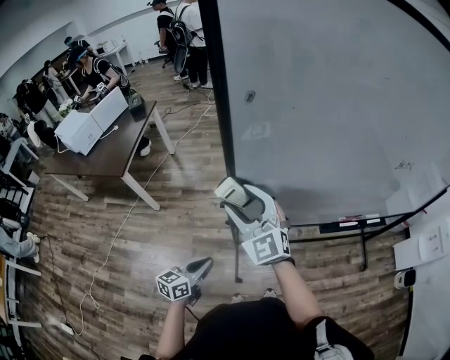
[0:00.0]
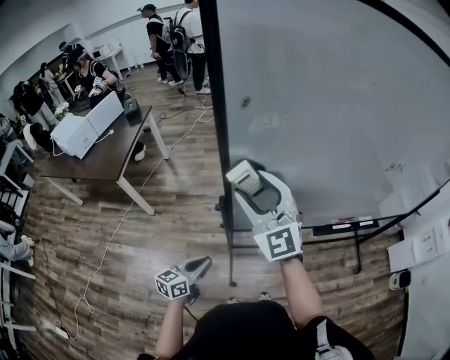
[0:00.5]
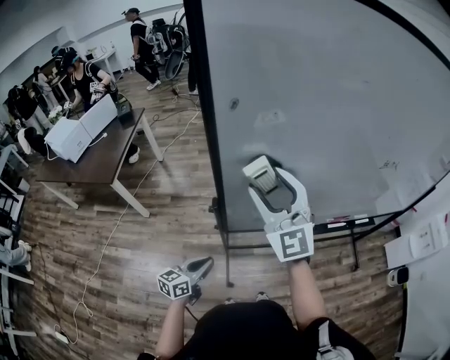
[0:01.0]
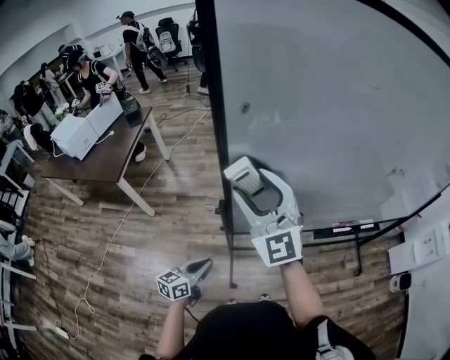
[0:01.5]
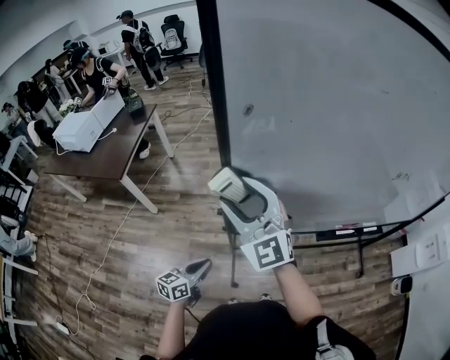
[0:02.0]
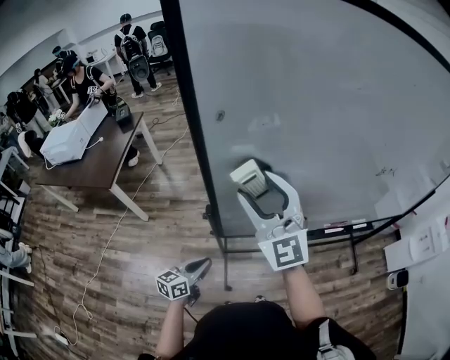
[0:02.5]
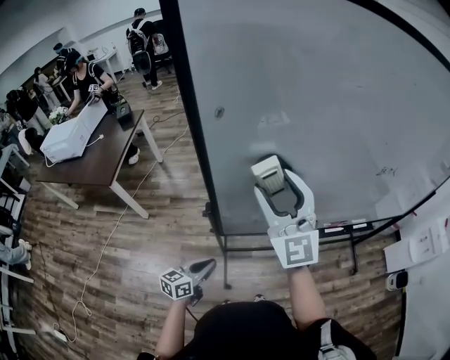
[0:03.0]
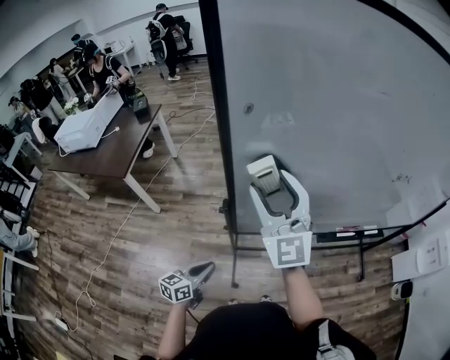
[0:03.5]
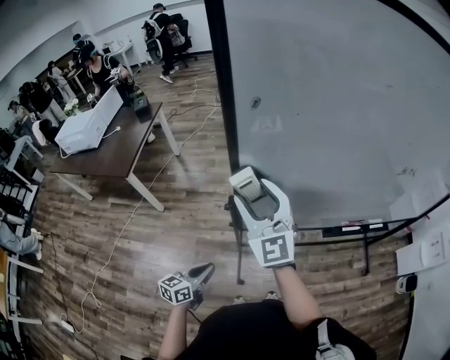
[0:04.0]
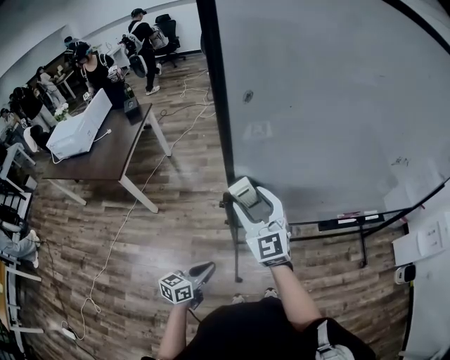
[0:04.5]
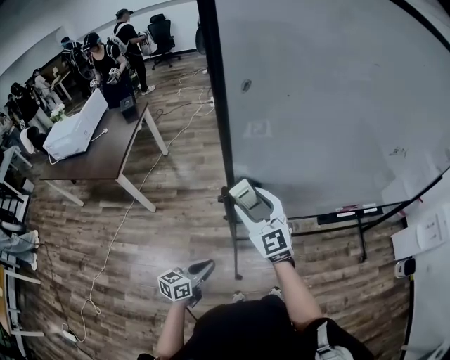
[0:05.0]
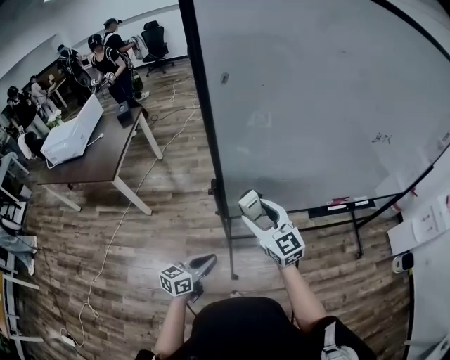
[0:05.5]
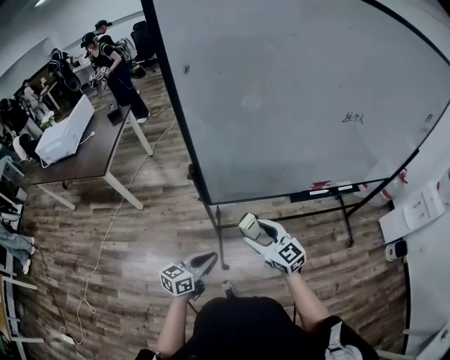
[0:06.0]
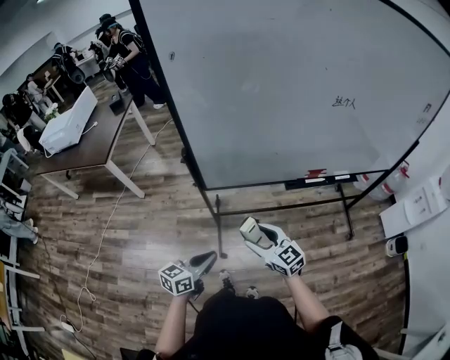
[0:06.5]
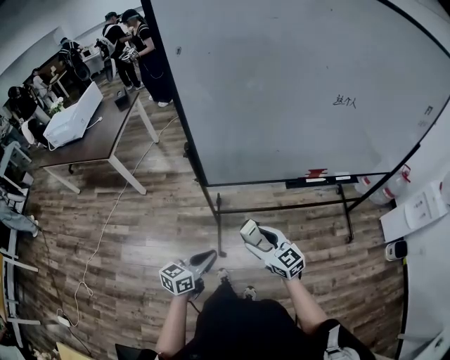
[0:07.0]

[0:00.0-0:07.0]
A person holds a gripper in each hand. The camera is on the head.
0:00.0 to 0:02.0: The right gripper moves upward, about 10 cm.
0:02.0 to 0:03.5: The right gripper moves to the right, about 5 cm.
0:03.5 to 0:05.0: The right gripper goes approximately 15 cm downward, and changes its angle by roughly 20 degrees.
0:05.0 to 0:07.0: The right gripper moves backward, to the right and downward, some 35 cm, and turns by about 30 degrees; the left gripper heads backward and to the right, covering about 25 cm.

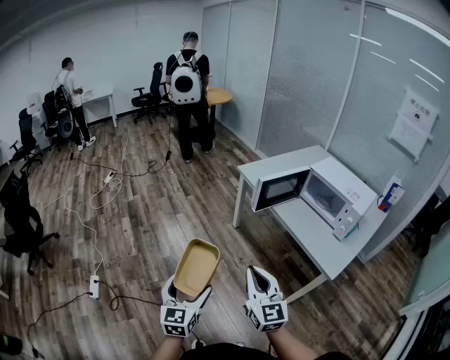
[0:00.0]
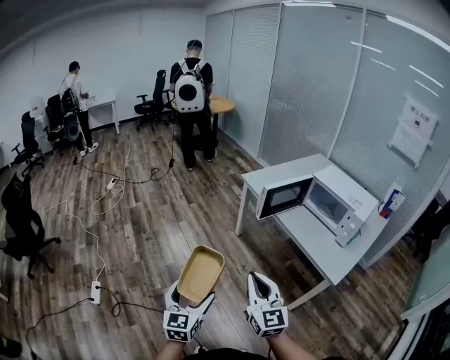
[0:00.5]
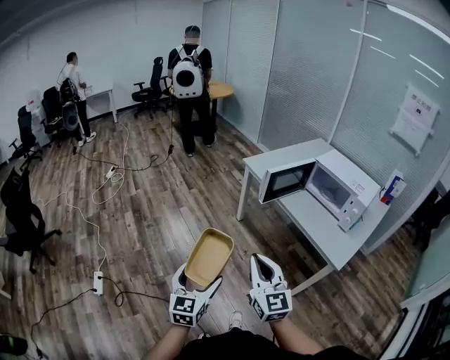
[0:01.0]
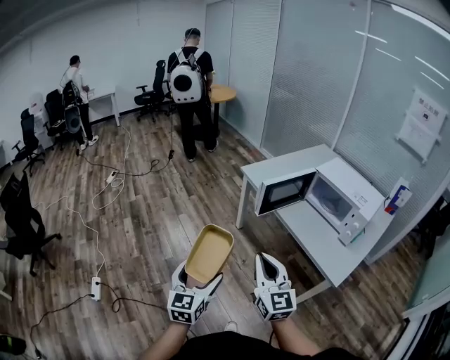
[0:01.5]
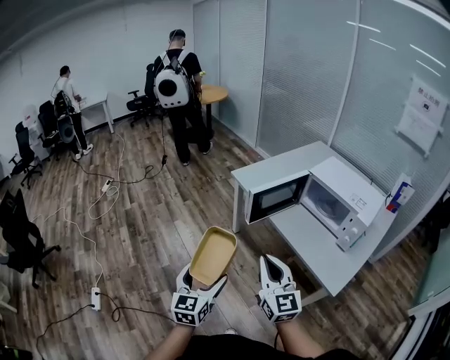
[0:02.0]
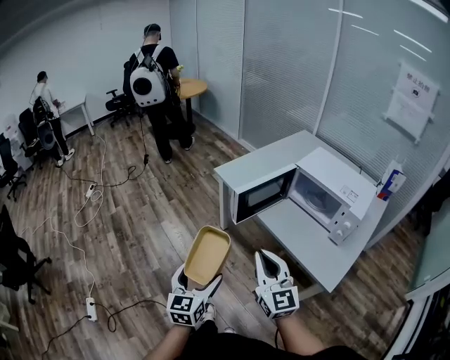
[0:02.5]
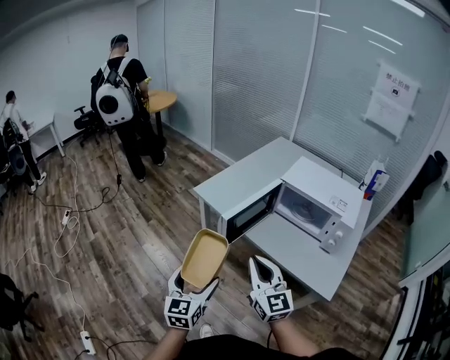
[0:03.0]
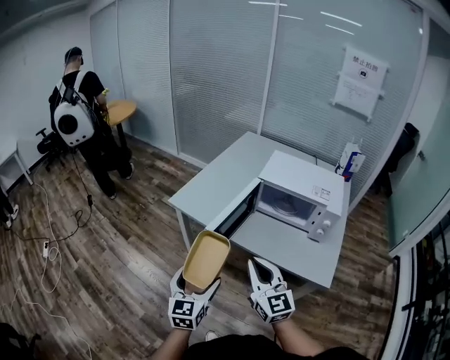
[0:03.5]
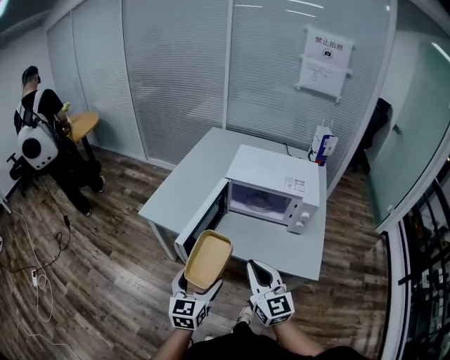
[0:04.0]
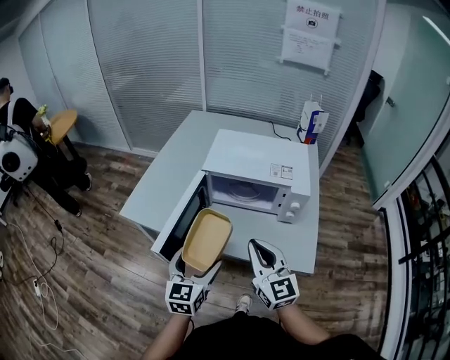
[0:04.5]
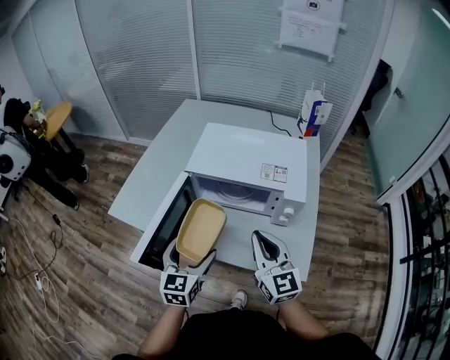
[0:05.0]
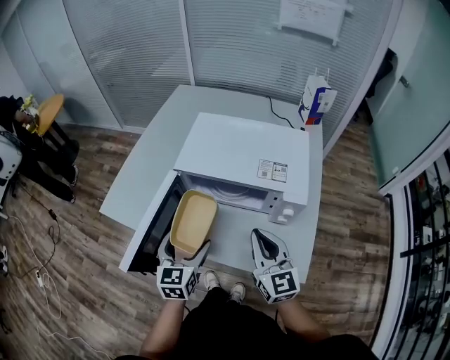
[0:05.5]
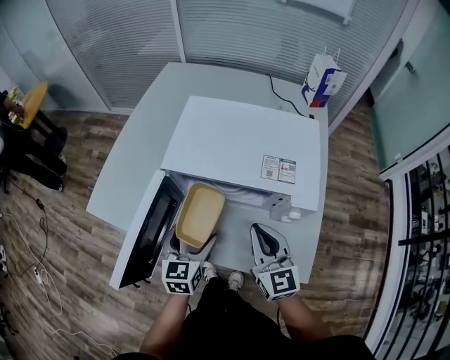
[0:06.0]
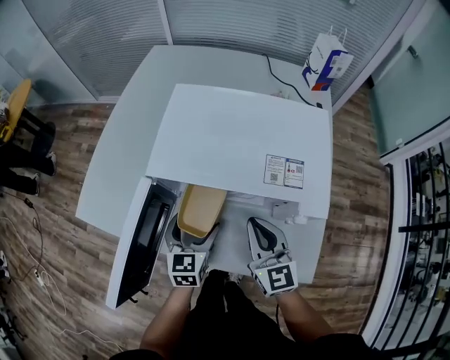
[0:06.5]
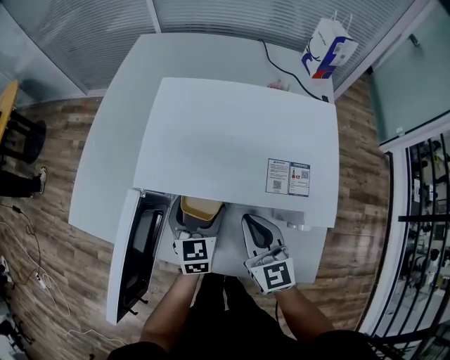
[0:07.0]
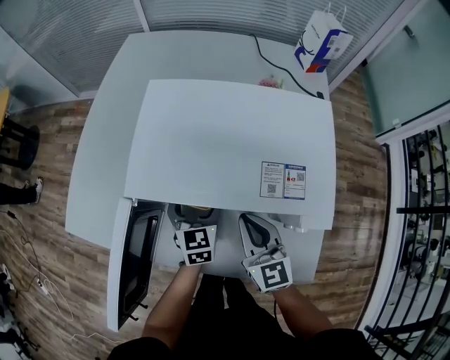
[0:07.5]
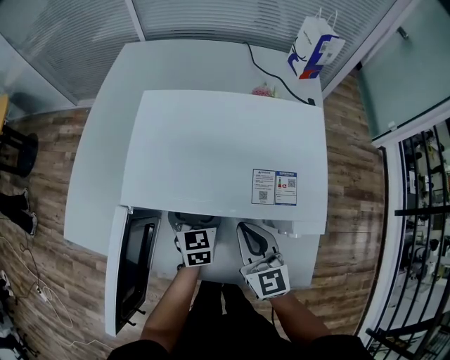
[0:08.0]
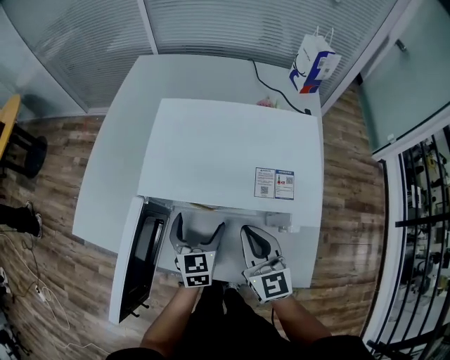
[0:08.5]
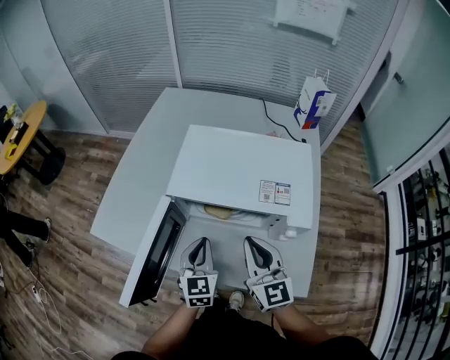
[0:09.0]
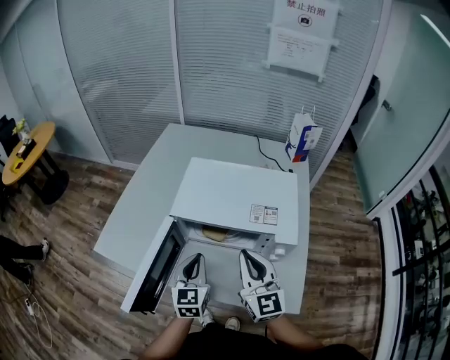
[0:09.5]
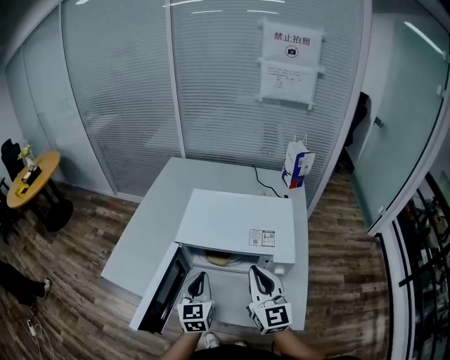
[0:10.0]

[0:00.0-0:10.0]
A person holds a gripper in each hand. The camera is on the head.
0:00.0 to 0:02.0: The grippers both shift forward and to the right by approximately 15 cm.
0:02.0 to 0:04.0: The right gripper shifts by approximately 20 cm, and changes its angle by approximately 30 degrees, while the left gripper ends up some 30 cm from where it was, and changes its angle by about 40 degrees.
0:04.0 to 0:06.0: Both grippers move forward and to the right, approximately 30 cm.
0:06.0 to 0:08.0: The left gripper is displaced forward, downward and to the right by some 20 cm; the right gripper heads downward and forward, covering roughly 10 cm.
0:08.0 to 0:10.0: The left gripper is displaced upward and backward by some 25 cm, and closes. The right gripper moves upward, approximately 20 cm.

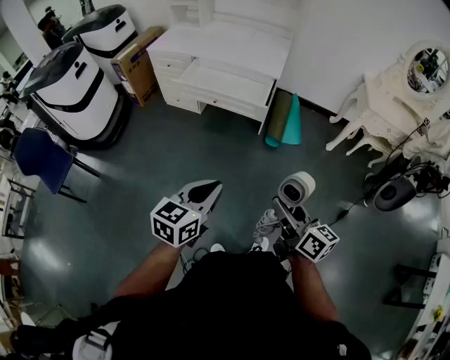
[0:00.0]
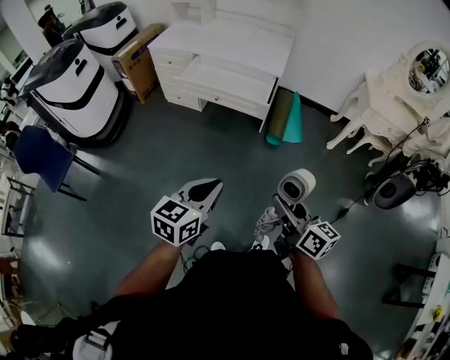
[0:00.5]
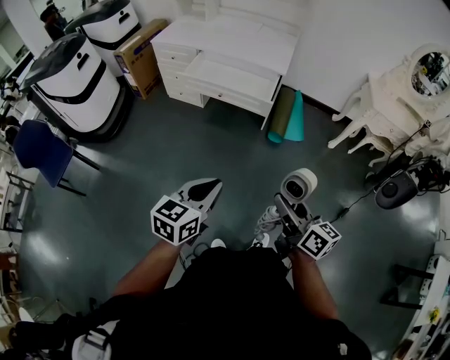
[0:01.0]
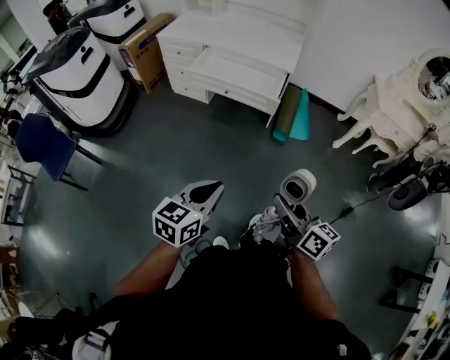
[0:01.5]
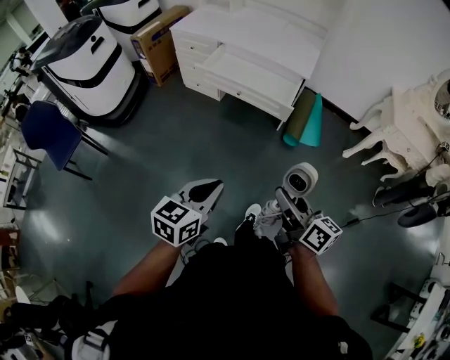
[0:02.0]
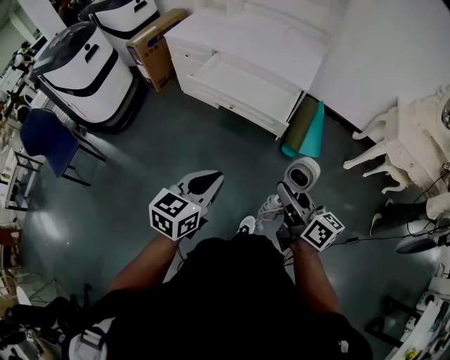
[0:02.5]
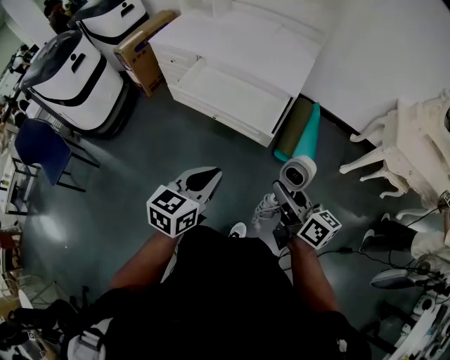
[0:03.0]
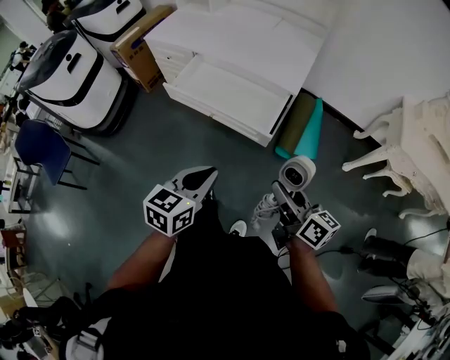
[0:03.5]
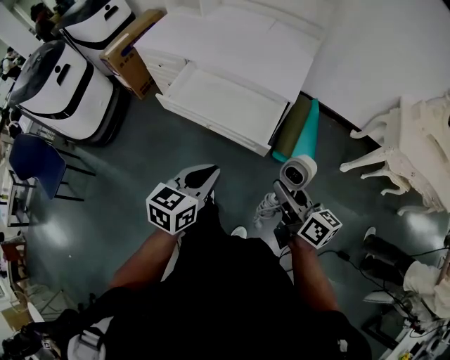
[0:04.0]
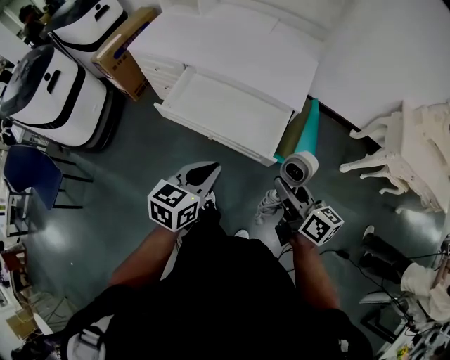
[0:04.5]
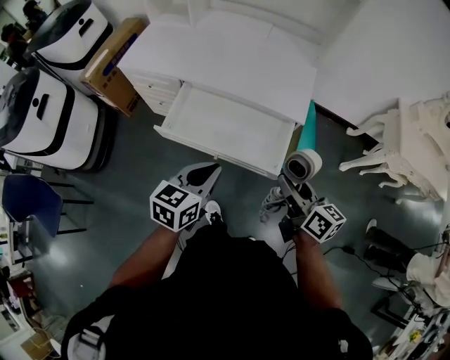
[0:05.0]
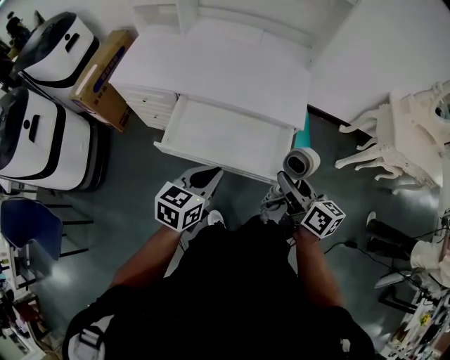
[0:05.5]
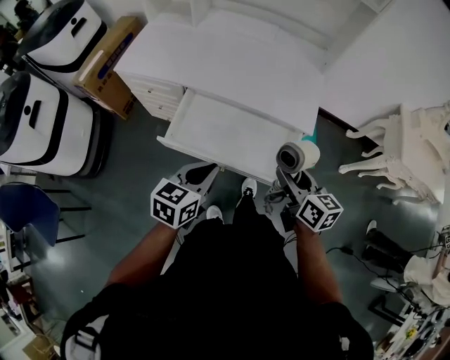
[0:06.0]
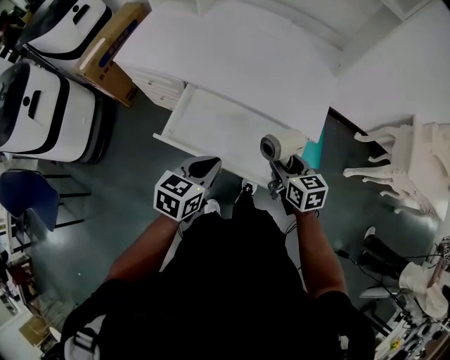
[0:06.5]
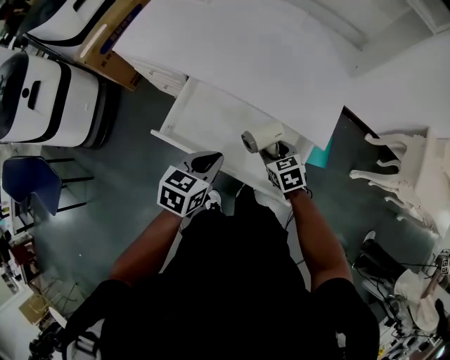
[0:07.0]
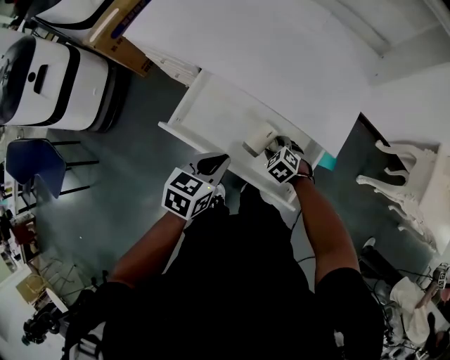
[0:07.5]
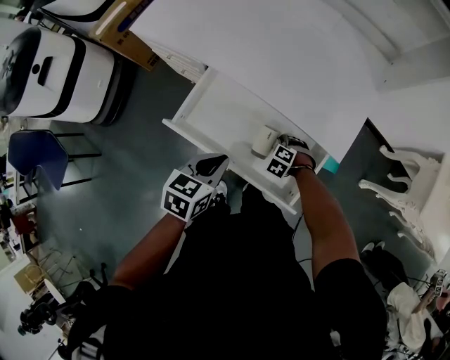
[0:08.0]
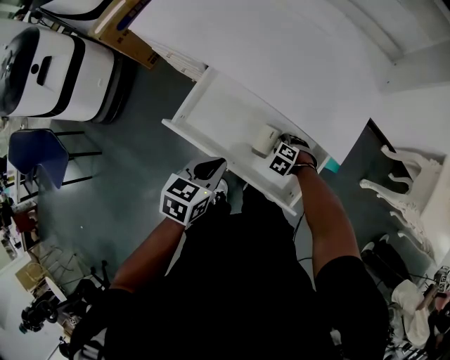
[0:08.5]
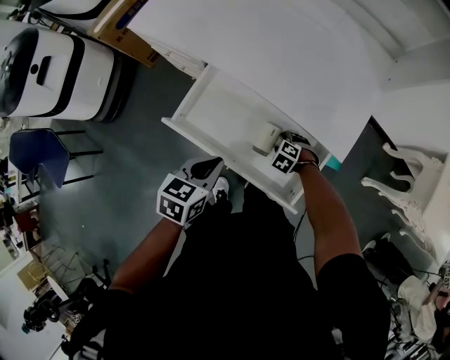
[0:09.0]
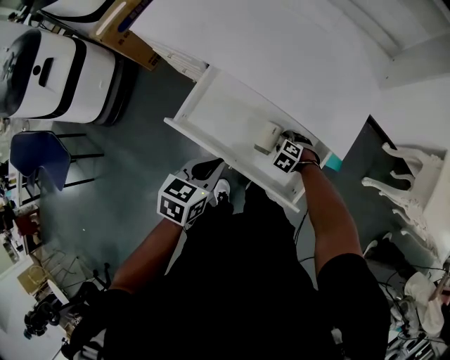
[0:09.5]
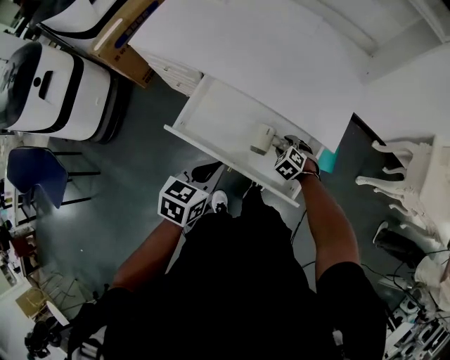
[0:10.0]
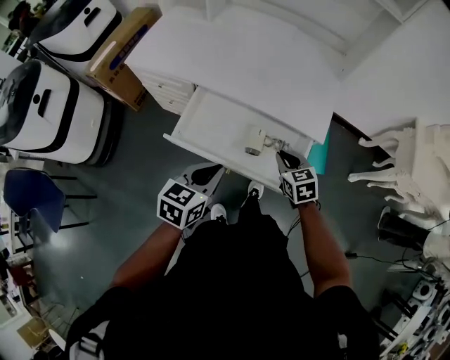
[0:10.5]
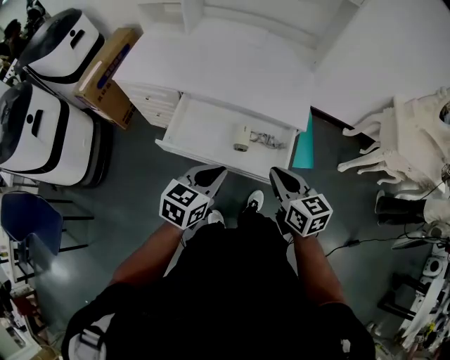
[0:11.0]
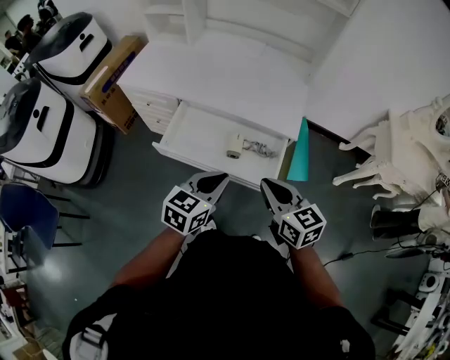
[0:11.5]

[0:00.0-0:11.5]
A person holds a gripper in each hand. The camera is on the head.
0:00.0 to 0:02.0: The left gripper travels to the left by roughly 5 cm. The right gripper travels forward and to the left by about 10 cm.
0:02.0 to 0:04.0: Both grippers travel together forward, some 30 cm.
0:04.0 to 0:06.0: The grippers both shift forward and to the left by approximately 25 cm. The right gripper changes its angle by some 20 degrees.
0:06.0 to 0:07.5: The left gripper travels forward and downward by roughly 10 cm, while the right gripper shifts roughly 30 cm downward and forward, and tips its fingers downward by roughly 50 degrees.
0:07.5 to 0:09.5: The right gripper goes roughly 5 cm downward.
0:09.5 to 0:11.5: The right gripper travels upward by some 40 cm, tips its fingers upward by roughly 60 degrees, and closes. Meanwhile the left gripper shifts by some 20 cm, and changes its angle by about 30 degrees.
